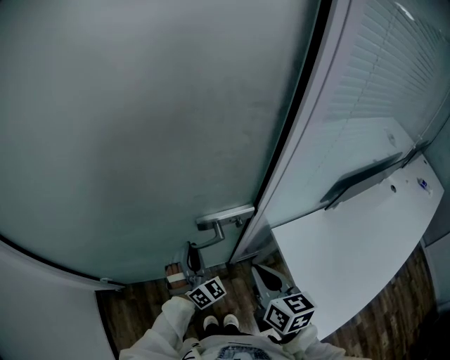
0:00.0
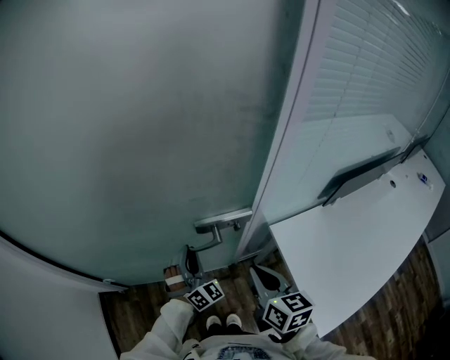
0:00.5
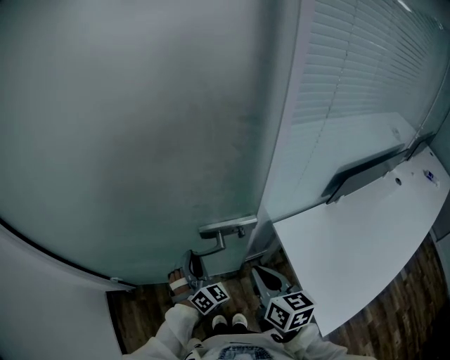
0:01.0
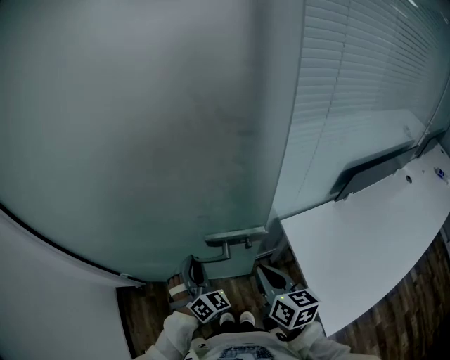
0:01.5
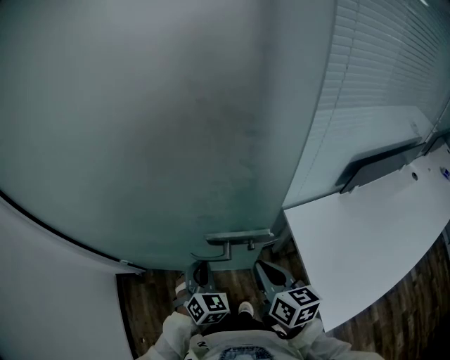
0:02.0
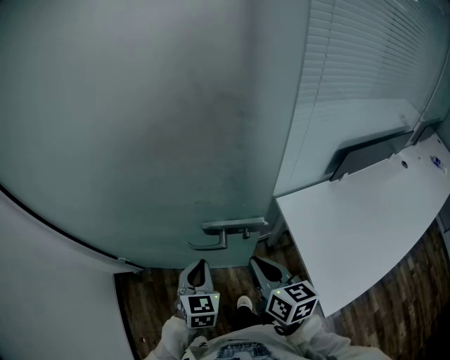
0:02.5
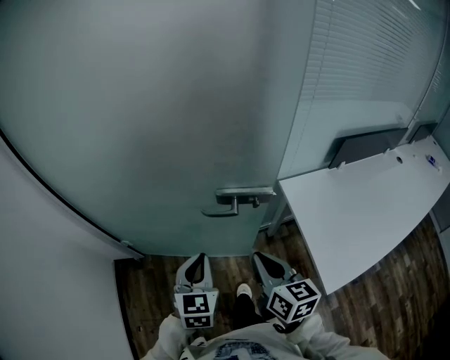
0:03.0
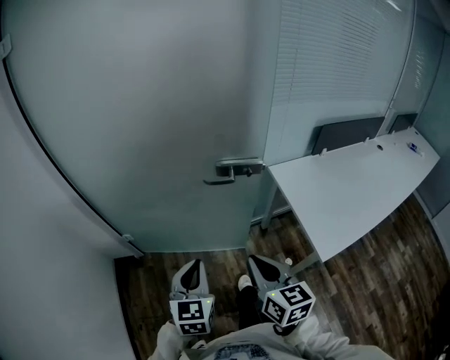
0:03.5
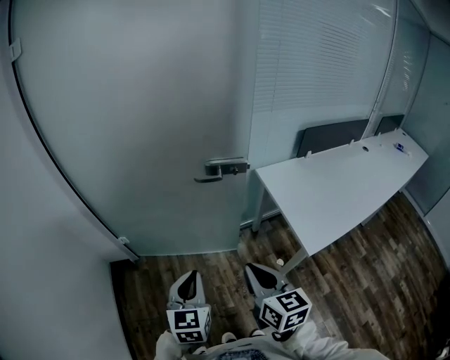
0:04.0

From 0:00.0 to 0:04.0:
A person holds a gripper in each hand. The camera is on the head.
From 0:00.0 to 0:02.0: The left gripper goes about 15 cm backward, turns by some 30 degrees, and closes. Meanwhile the right gripper shifts some 5 cm backward.
From 0:02.0 to 0:04.0: Both grippers move backward, about 35 cm. The left gripper rotates roughly 40 degrees.

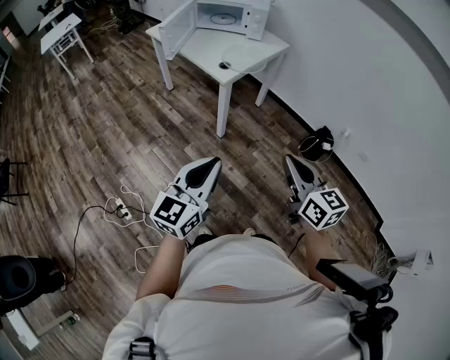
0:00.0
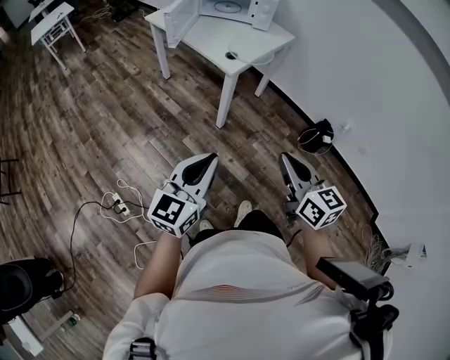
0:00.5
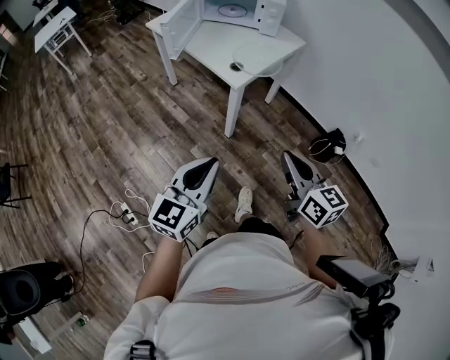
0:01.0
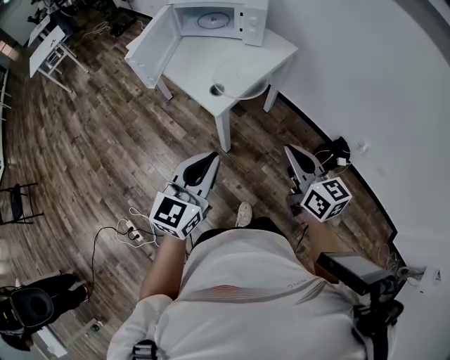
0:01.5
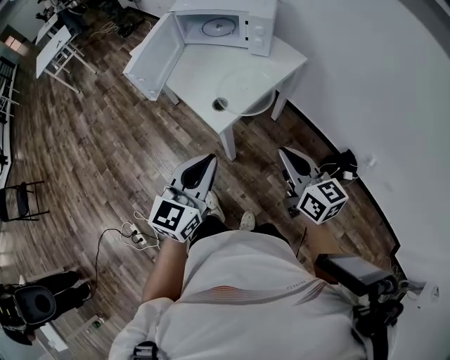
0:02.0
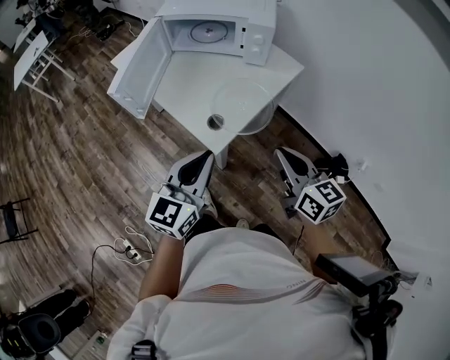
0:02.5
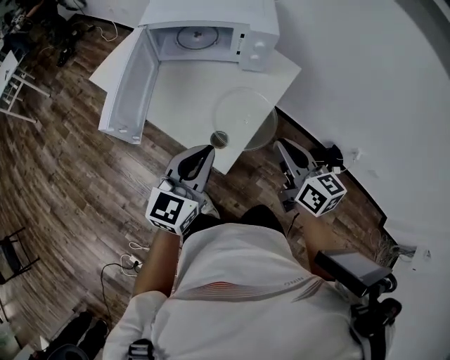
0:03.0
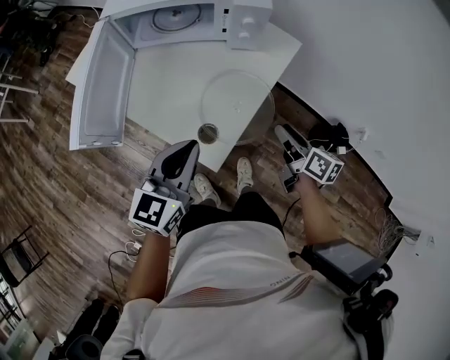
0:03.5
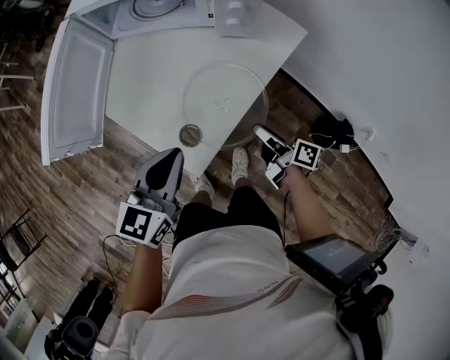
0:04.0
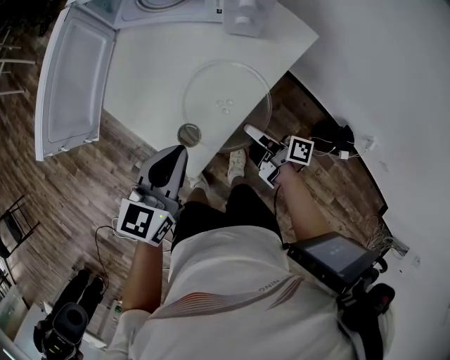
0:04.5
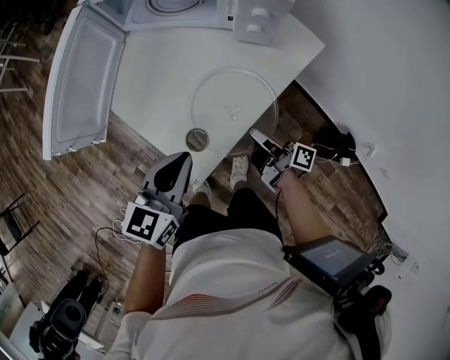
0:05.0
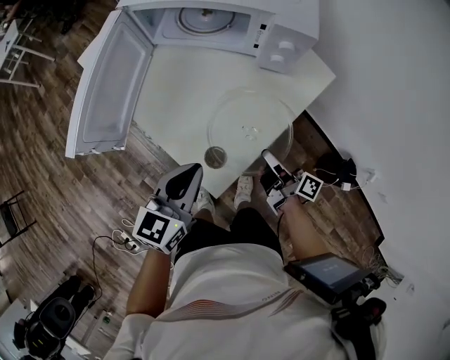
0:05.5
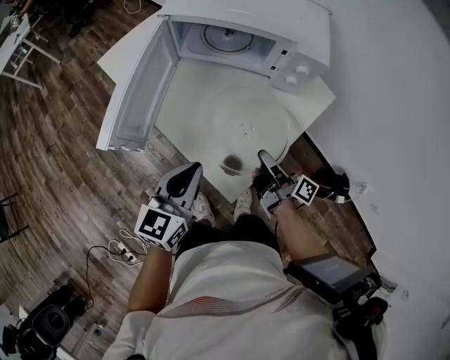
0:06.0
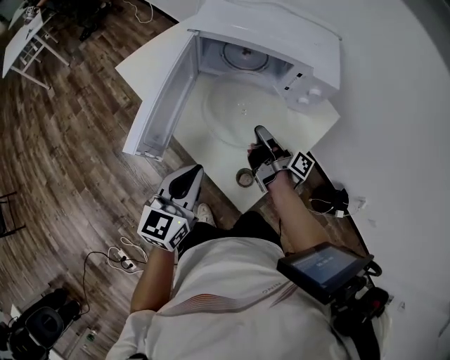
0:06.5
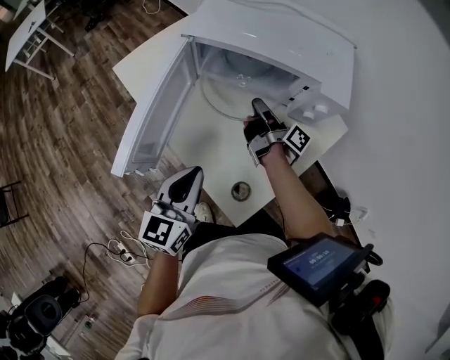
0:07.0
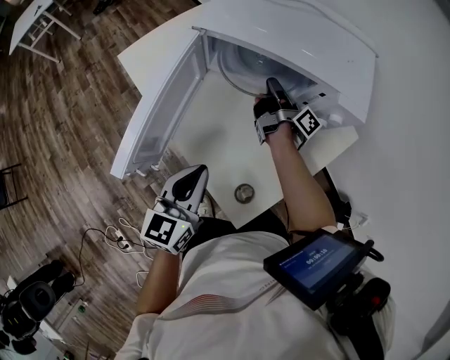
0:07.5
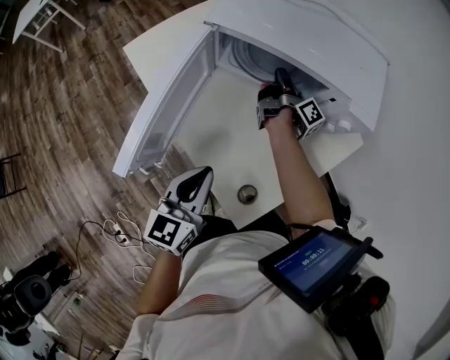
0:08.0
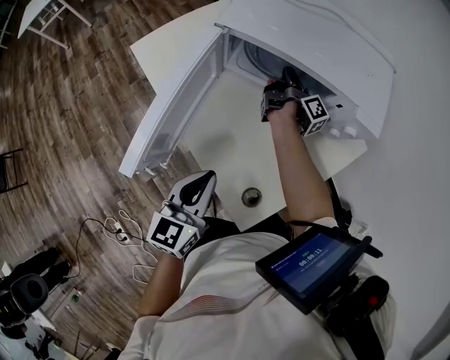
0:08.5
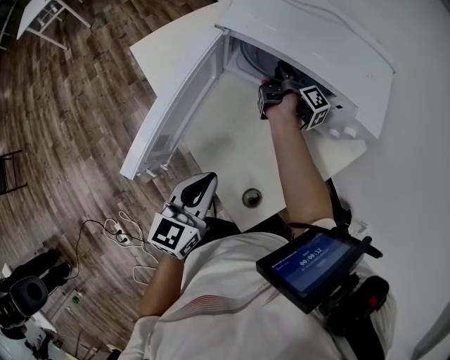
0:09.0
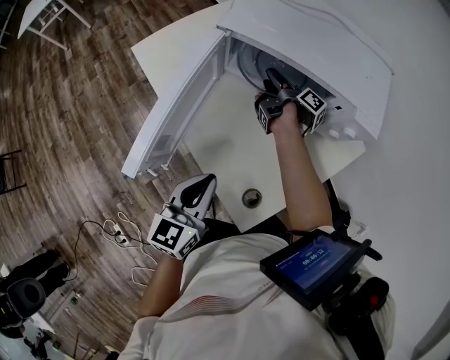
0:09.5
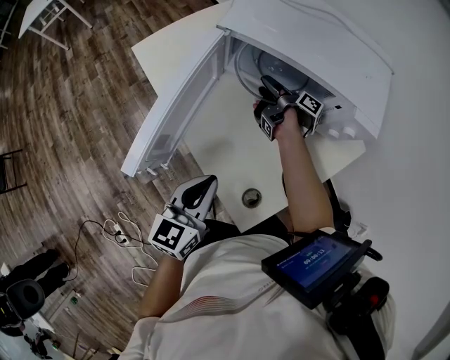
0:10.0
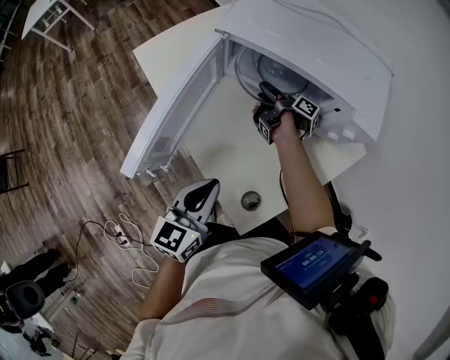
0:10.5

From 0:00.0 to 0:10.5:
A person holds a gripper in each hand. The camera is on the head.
From 0:00.0 to 0:02.0: Both grippers move forward, roughly 35 cm.
From 0:02.0 to 0:04.0: The right gripper is displaced downward and forward by roughly 40 cm, rolls clockwise, seen from behind, by about 50 degrees, and opens up, while the left gripper is displaced forward and downward by roughly 30 cm.
From 0:04.0 to 0:06.5: The left gripper moves to the left, about 15 cm; the right gripper shifts some 25 cm to the left, forward and upward, swivels roughly 20 degrees, and closes.
From 0:06.5 to 0:08.5: The left gripper is displaced forward by approximately 5 cm. Meanwhile the right gripper is displaced forward by roughly 25 cm, and rotates roughly 20 degrees.
From 0:08.5 to 0:10.5: The right gripper heads to the left and backward, covering some 10 cm, swivels some 30 degrees, and opens up.

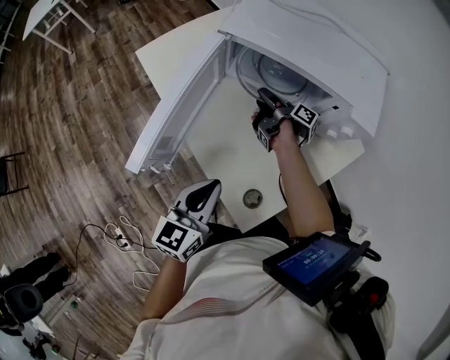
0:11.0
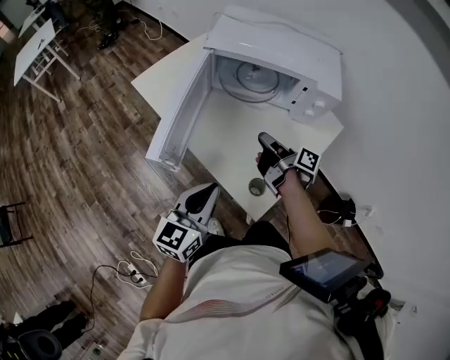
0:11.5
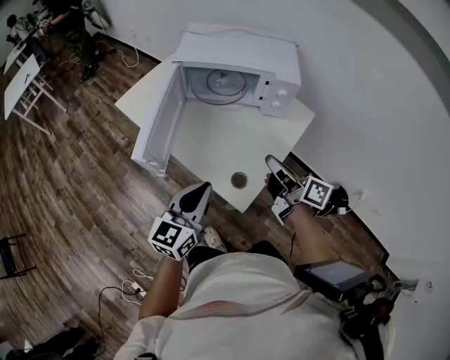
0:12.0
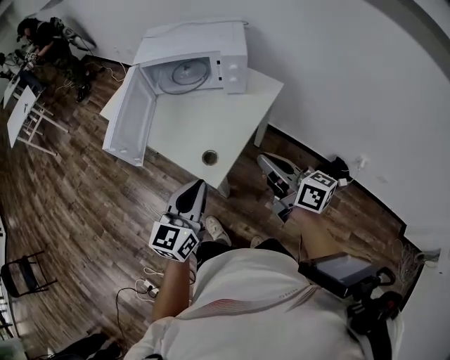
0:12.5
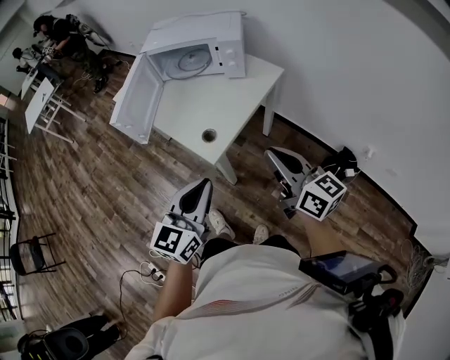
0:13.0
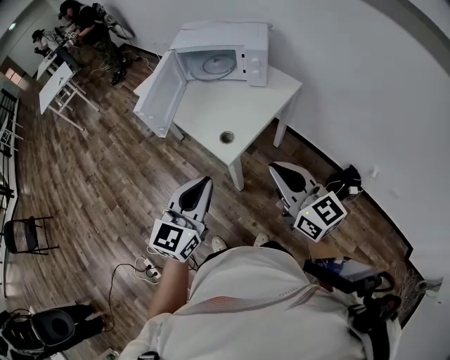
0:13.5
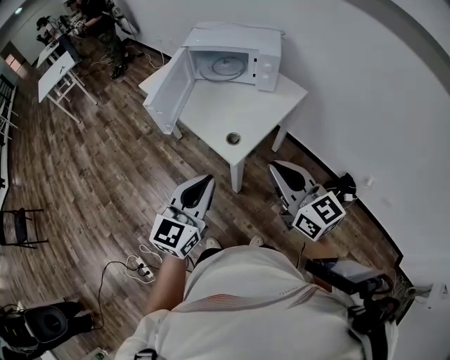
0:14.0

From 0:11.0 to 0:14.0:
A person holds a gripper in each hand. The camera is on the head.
From 0:11.0 to 0:12.5: The right gripper heads backward, upward and to the right, covering approximately 60 cm, rotates around the line of its fingers by about 60 degrees, counterclockwise from behind, and closes up. The left gripper travels backward, to the right and upward by about 25 cm, and changes its angle by approximately 20 degrees.
From 0:12.5 to 0:14.0: The right gripper heads backward, upward and to the left, covering roughly 15 cm, and swivels roughly 30 degrees, while the left gripper goes about 15 cm backward and upward.

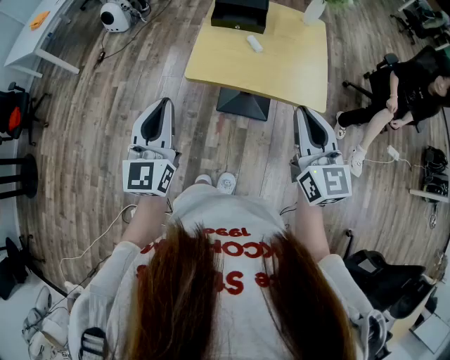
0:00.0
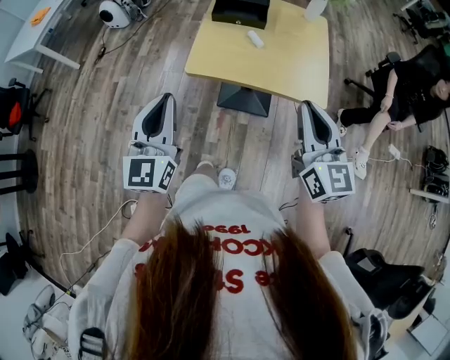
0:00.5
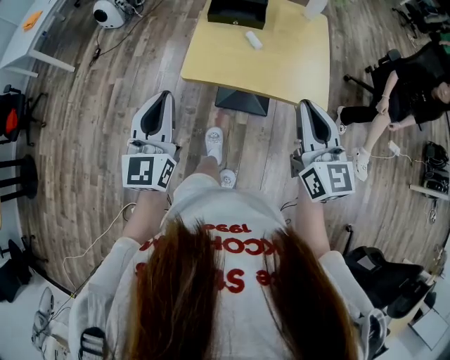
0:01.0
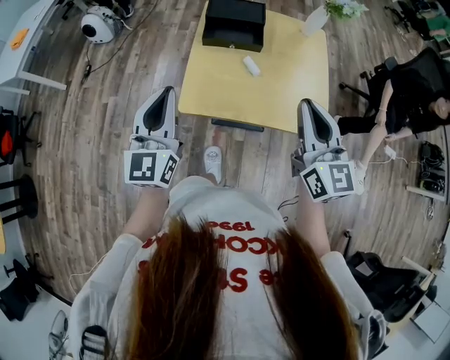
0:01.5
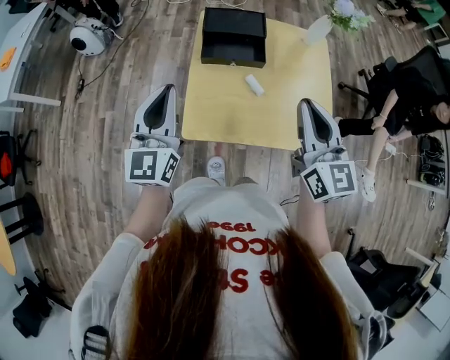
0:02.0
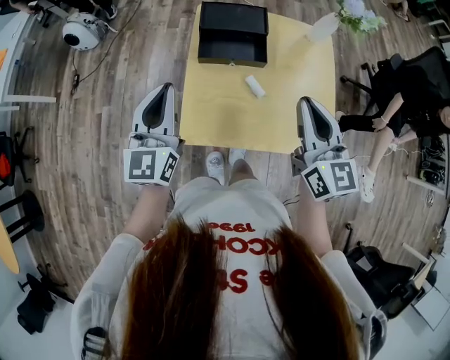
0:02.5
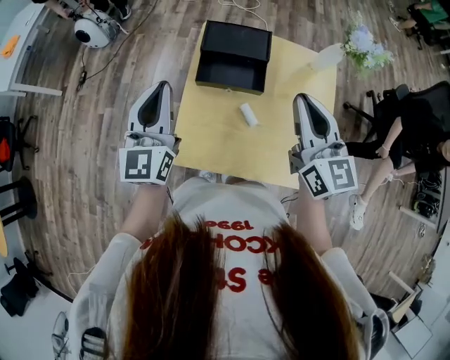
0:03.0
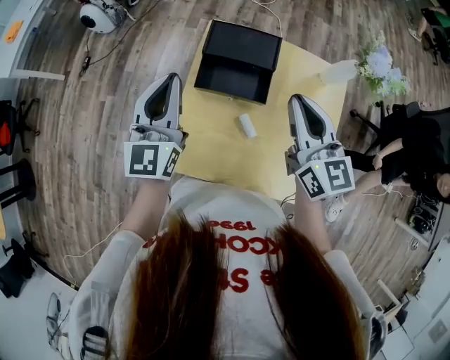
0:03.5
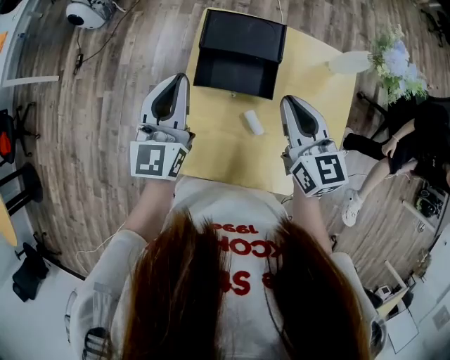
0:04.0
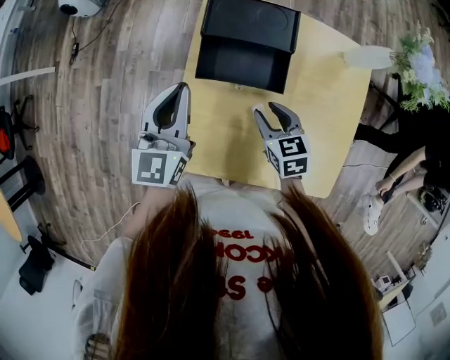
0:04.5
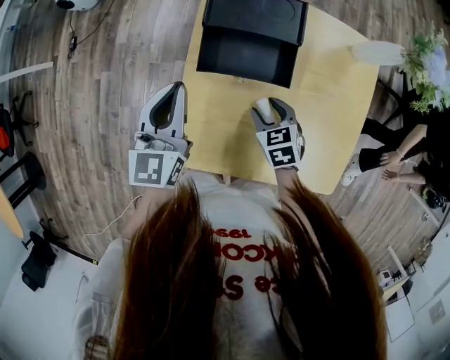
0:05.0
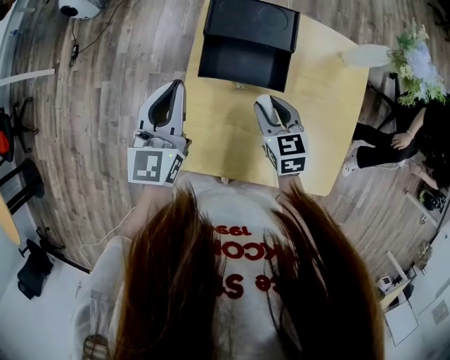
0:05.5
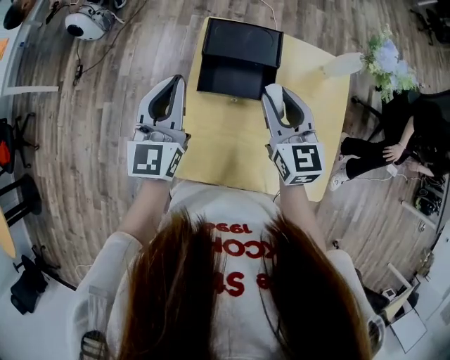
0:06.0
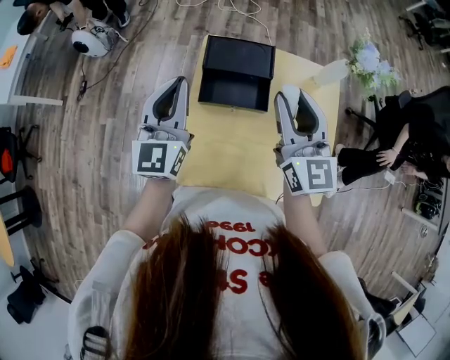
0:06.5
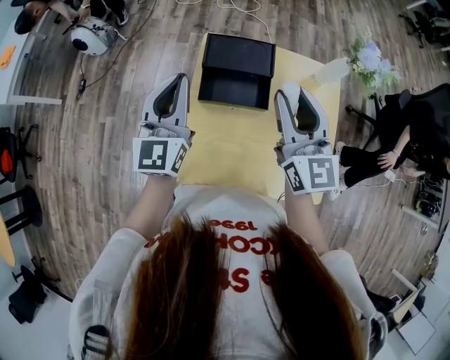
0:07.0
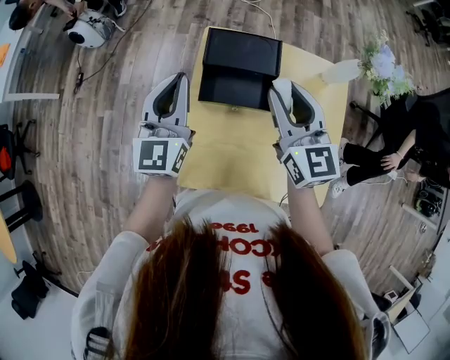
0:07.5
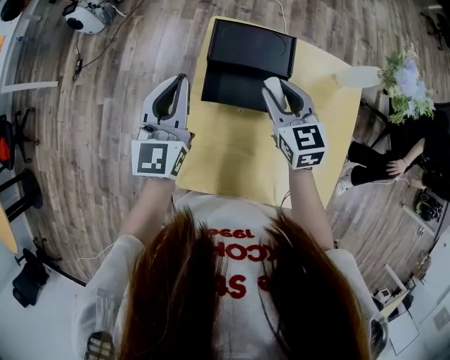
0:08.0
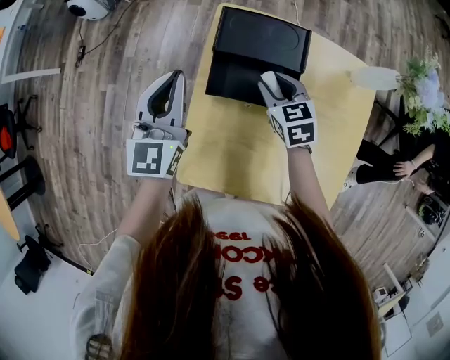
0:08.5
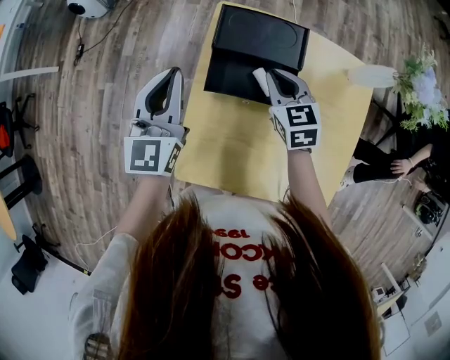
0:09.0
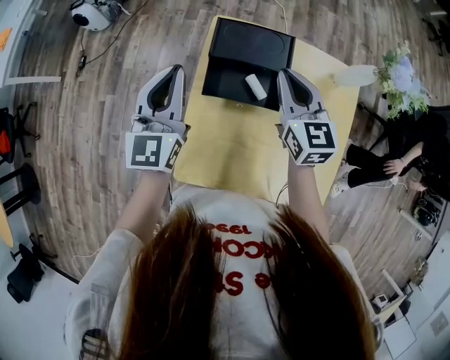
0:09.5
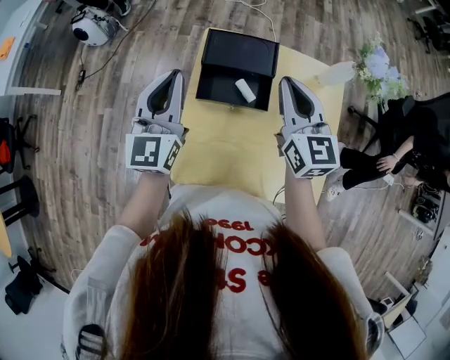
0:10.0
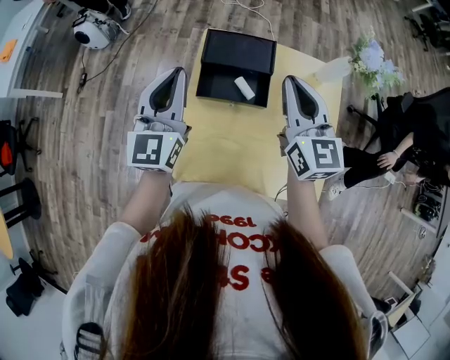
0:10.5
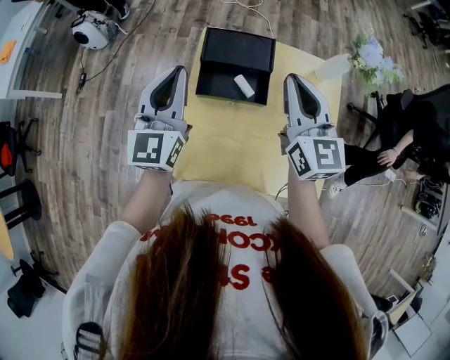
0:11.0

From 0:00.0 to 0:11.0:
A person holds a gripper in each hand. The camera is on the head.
From 0:00.0 to 0:02.0: The grippers both shift forward by approximately 25 cm.
From 0:02.0 to 0:03.5: The right gripper goes about 15 cm forward. The left gripper moves forward and to the right, some 15 cm.
From 0:03.5 to 0:05.5: The right gripper heads downward, covering some 25 cm, angles its fingers downward, by approximately 30 degrees, and opens; the left gripper heads downward, covering about 10 cm.
From 0:05.5 to 0:07.5: The left gripper moves upward, some 5 cm. Meanwhile the right gripper heads upward, covering about 20 cm, and angles its fingers upward, by roughly 30 degrees.
From 0:07.5 to 0:09.0: The right gripper is displaced downward by some 20 cm, turns by roughly 30 degrees, and closes; the left gripper goes about 5 cm downward.
From 0:09.0 to 0:11.0: The left gripper goes about 10 cm upward, while the right gripper heads upward, covering about 20 cm, and angles its fingers upward, by roughly 30 degrees.
